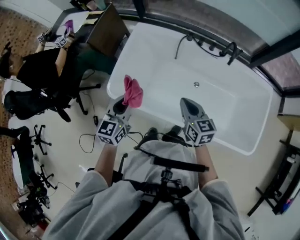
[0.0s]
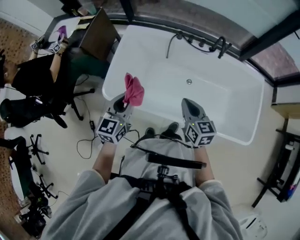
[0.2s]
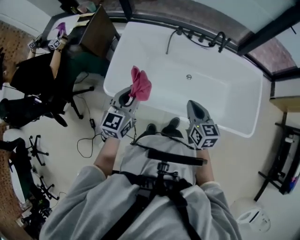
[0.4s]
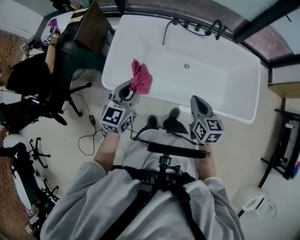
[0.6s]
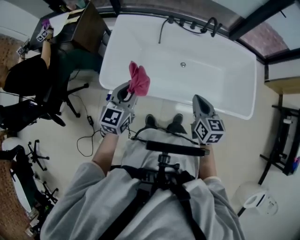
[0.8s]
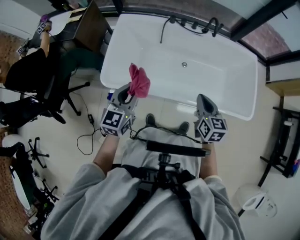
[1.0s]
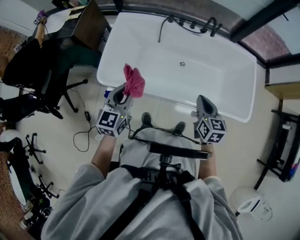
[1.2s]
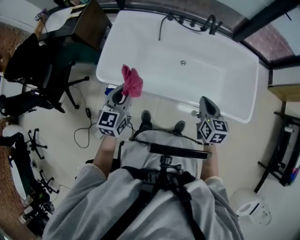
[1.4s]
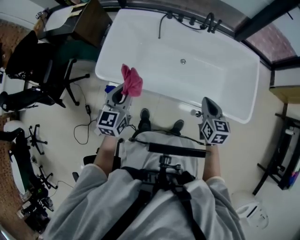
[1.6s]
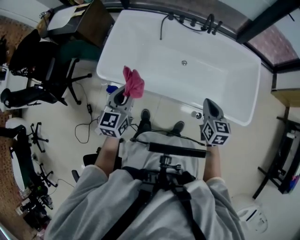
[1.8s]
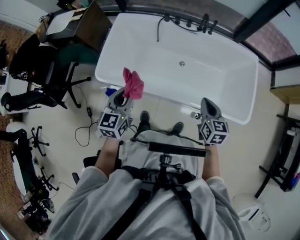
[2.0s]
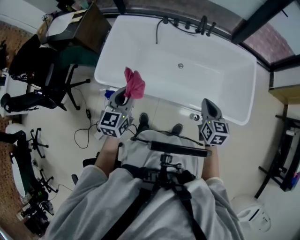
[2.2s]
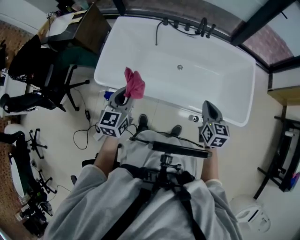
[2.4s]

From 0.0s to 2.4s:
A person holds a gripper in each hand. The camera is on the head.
From 0.0s to 1.2s: The right gripper changes place by roughly 20 cm, and turns by some 20 degrees.
From 1.2s to 2.4s: The right gripper shifts by approximately 15 cm.

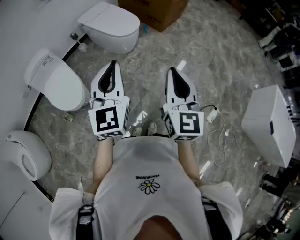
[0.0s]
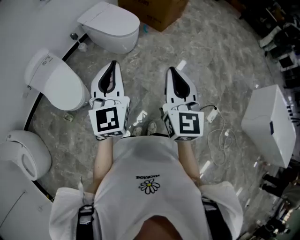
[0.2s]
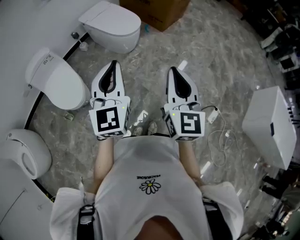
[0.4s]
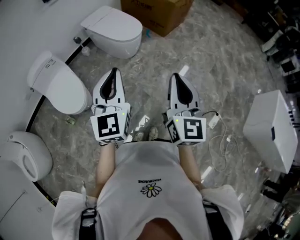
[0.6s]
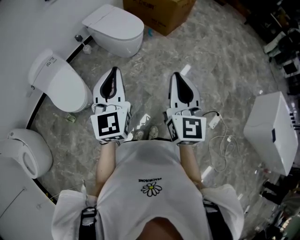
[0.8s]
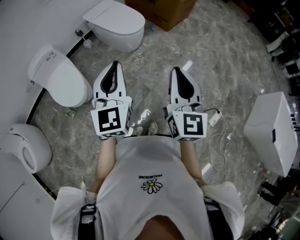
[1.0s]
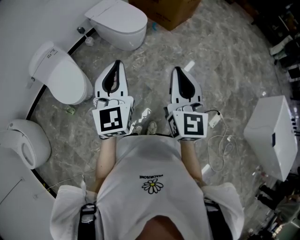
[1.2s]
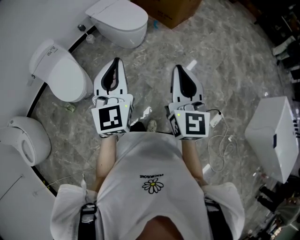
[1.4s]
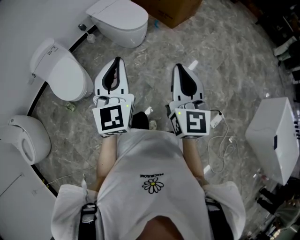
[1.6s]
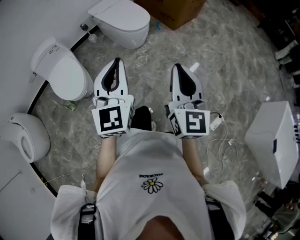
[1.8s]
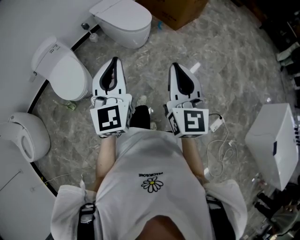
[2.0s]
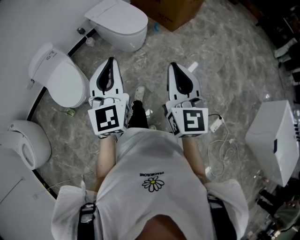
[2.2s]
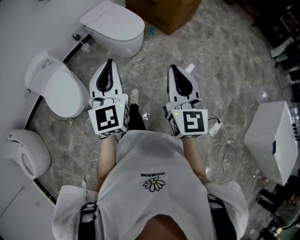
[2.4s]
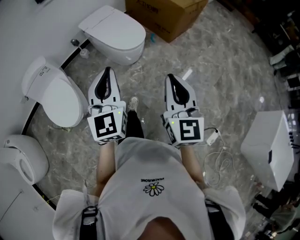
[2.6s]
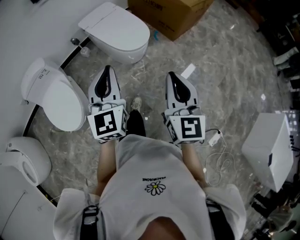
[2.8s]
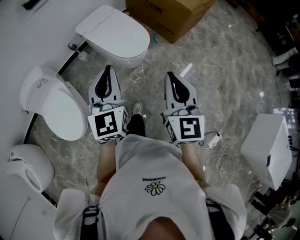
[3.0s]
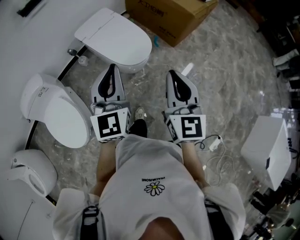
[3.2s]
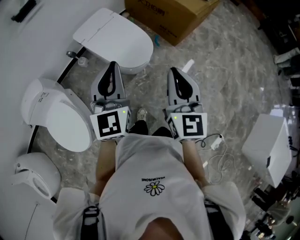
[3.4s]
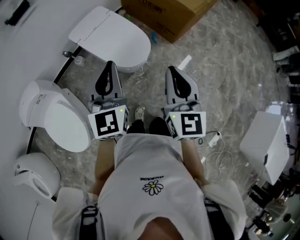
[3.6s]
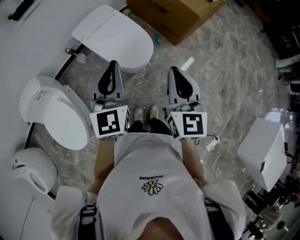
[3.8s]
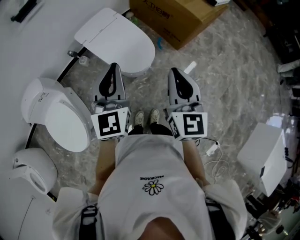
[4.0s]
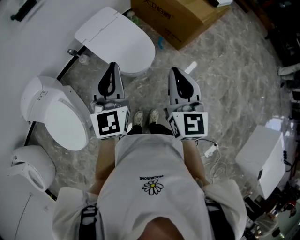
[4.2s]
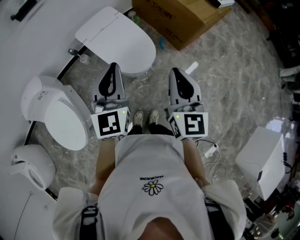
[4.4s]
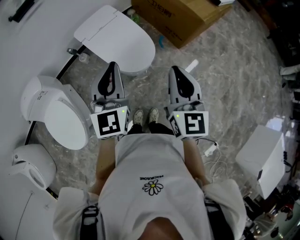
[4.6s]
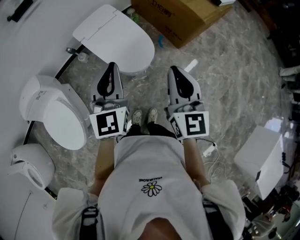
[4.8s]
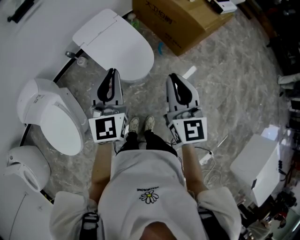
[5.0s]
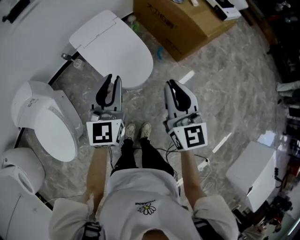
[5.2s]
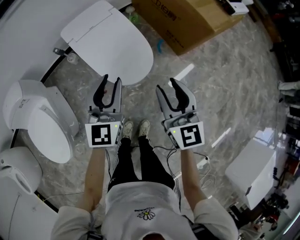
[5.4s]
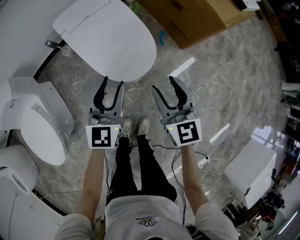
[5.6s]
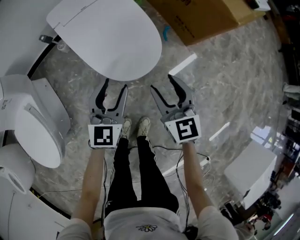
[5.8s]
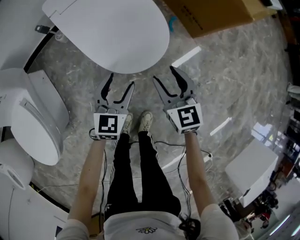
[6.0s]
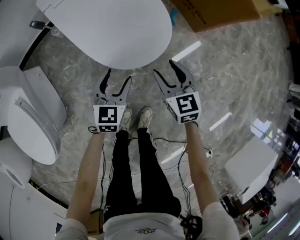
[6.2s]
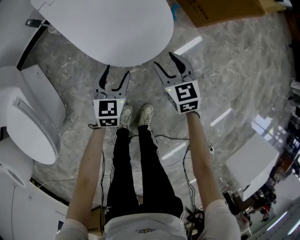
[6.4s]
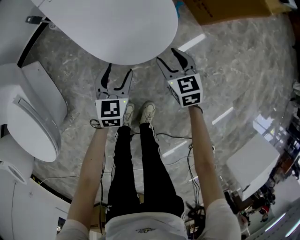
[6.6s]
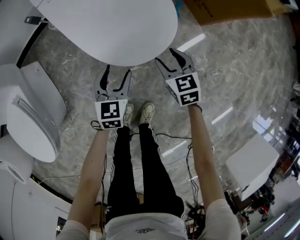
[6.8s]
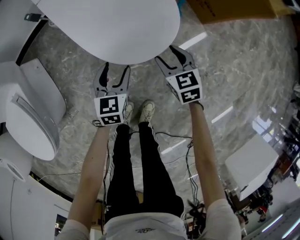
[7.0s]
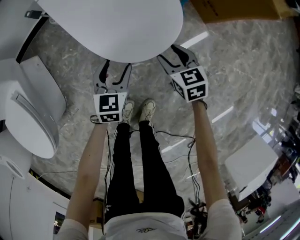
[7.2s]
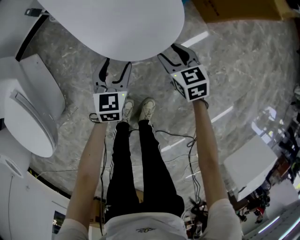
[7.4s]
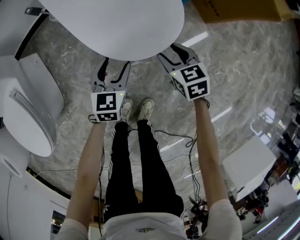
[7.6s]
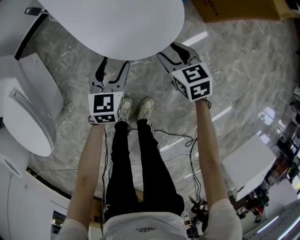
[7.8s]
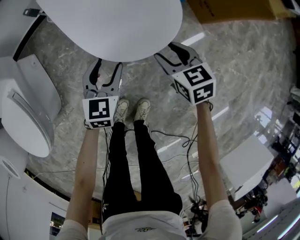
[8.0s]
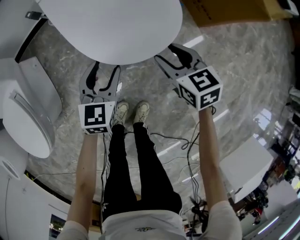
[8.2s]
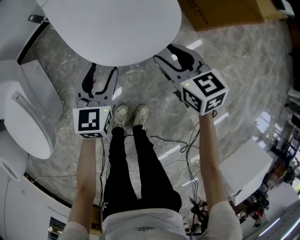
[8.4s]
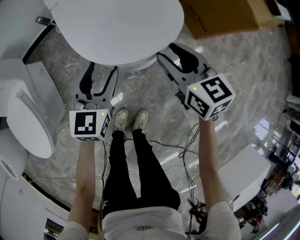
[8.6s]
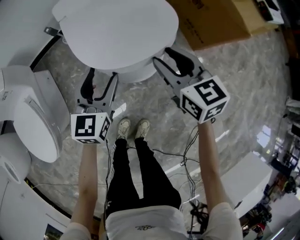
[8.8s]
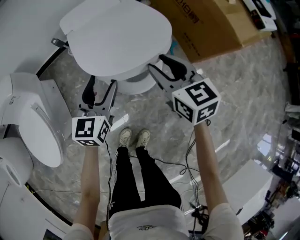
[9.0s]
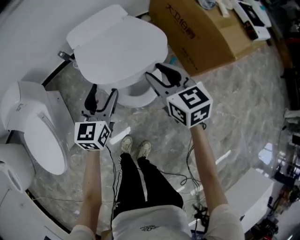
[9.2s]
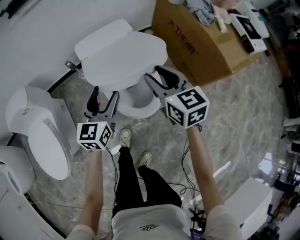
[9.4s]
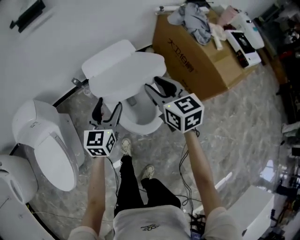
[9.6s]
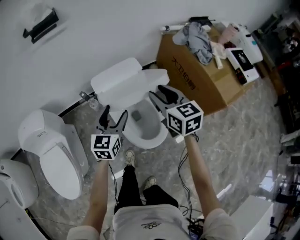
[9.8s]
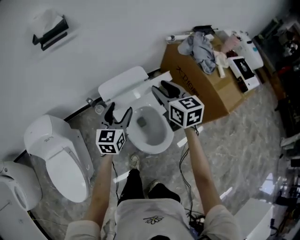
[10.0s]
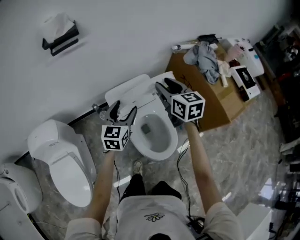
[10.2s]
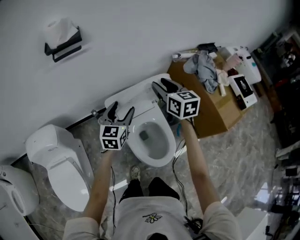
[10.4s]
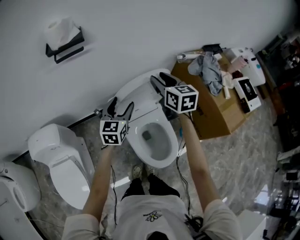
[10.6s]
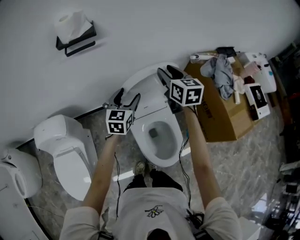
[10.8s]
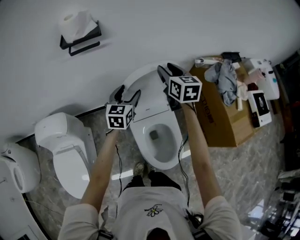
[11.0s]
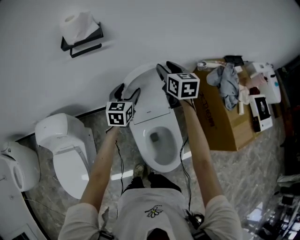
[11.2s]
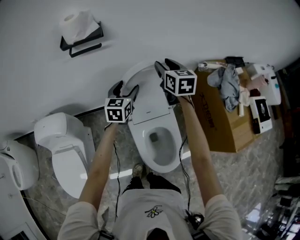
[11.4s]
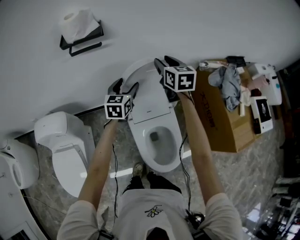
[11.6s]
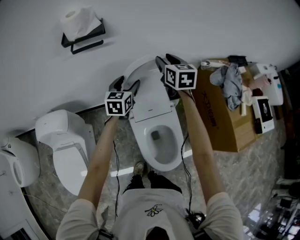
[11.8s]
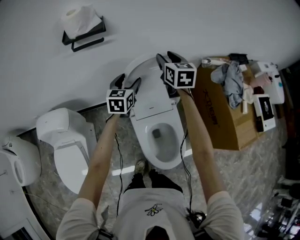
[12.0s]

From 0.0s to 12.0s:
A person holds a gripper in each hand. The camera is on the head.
From 0.0s to 1.6s: Both grippers move to the right, approximately 5 cm.
From 1.6s to 3.0s: Both grippers travel together forward, some 30 cm.
From 3.0s to 4.4s: Both grippers travel together forward, about 20 cm.
From 4.4s to 6.0s: Both grippers travel together downward, some 40 cm. The right gripper swivels some 30 degrees, and opens its fingers; the left gripper rotates about 30 degrees, and opens.
From 6.0s to 7.6s: Both grippers move downward, some 15 cm. The right gripper turns by roughly 20 degrees.
From 7.6s to 9.0s: Both grippers travel together upward, approximately 25 cm. The right gripper changes its angle by roughly 20 degrees.
From 9.0s to 10.4s: The grippers both shift forward and upward by approximately 35 cm.
From 10.4s to 12.0s: The grippers both shift forward by about 15 cm.

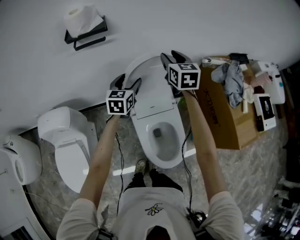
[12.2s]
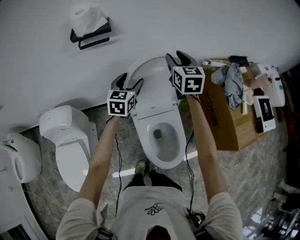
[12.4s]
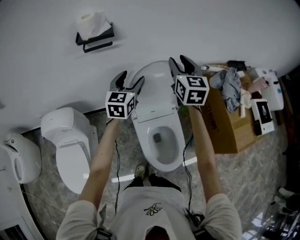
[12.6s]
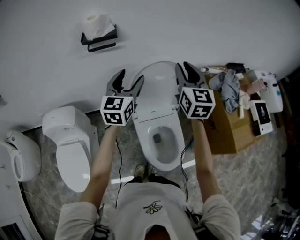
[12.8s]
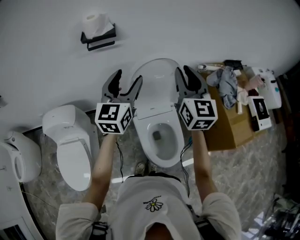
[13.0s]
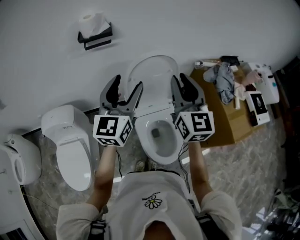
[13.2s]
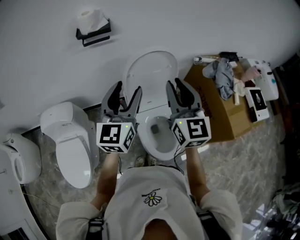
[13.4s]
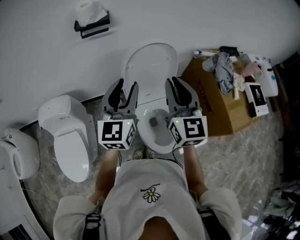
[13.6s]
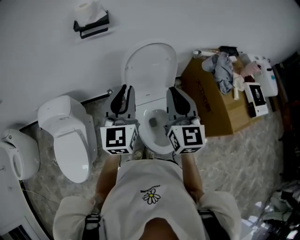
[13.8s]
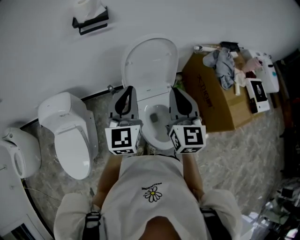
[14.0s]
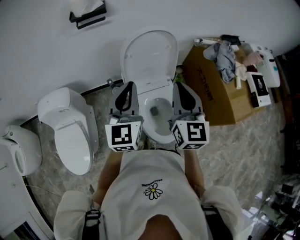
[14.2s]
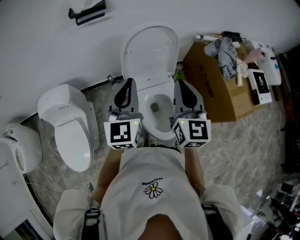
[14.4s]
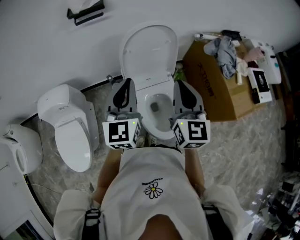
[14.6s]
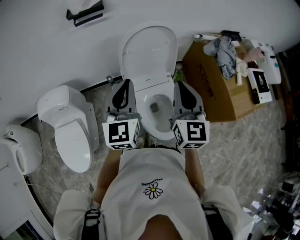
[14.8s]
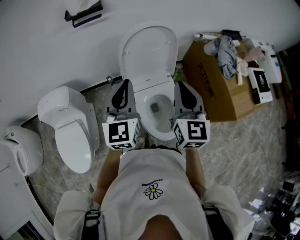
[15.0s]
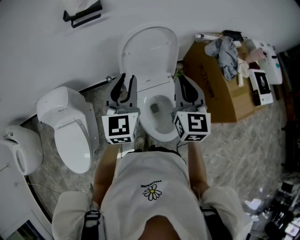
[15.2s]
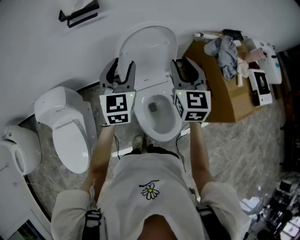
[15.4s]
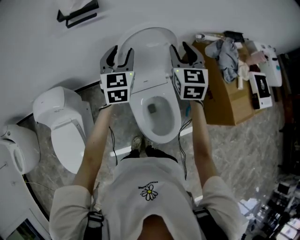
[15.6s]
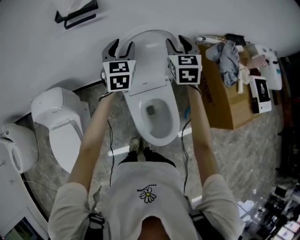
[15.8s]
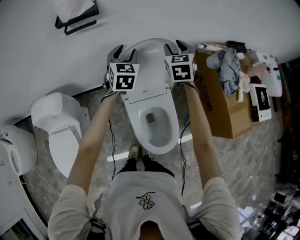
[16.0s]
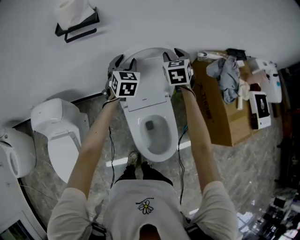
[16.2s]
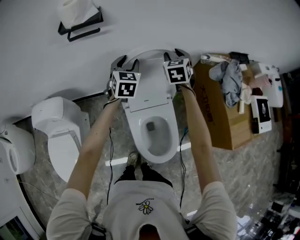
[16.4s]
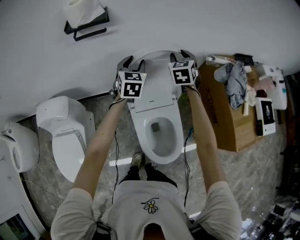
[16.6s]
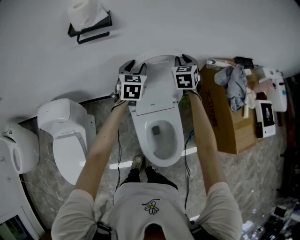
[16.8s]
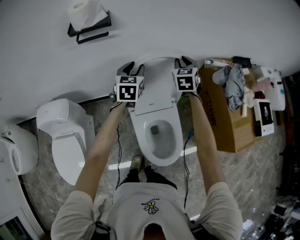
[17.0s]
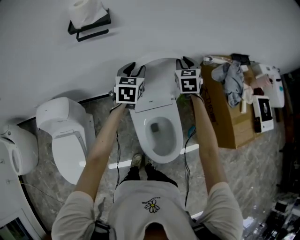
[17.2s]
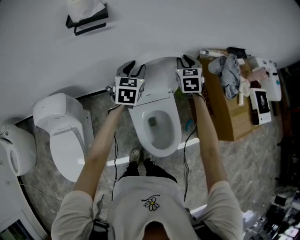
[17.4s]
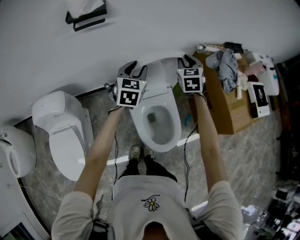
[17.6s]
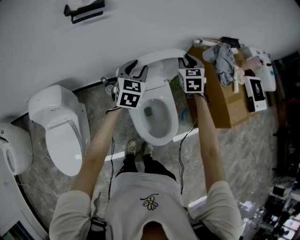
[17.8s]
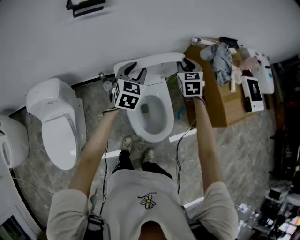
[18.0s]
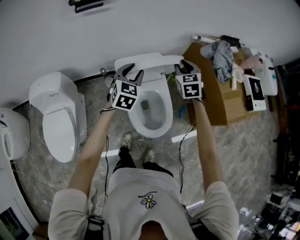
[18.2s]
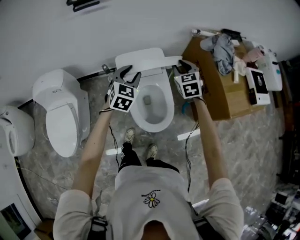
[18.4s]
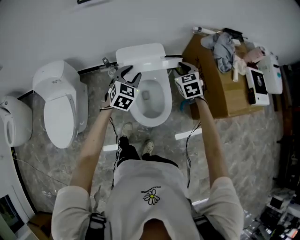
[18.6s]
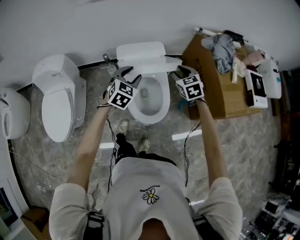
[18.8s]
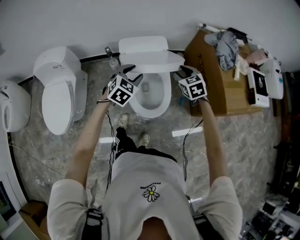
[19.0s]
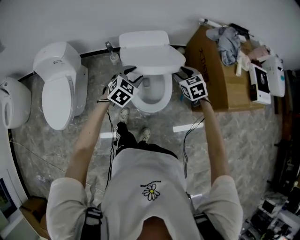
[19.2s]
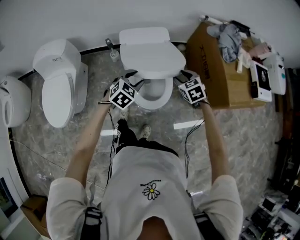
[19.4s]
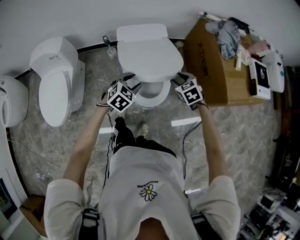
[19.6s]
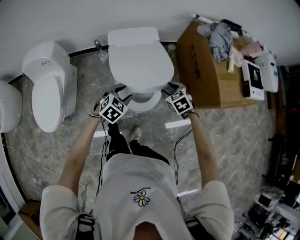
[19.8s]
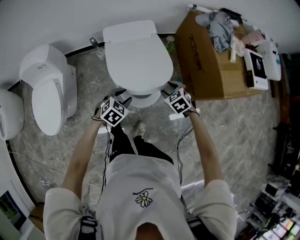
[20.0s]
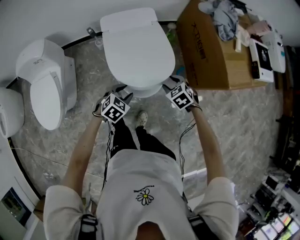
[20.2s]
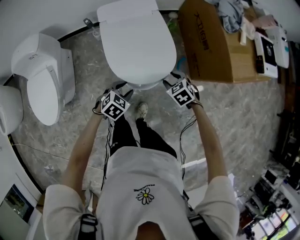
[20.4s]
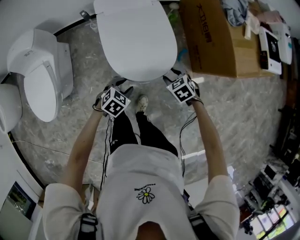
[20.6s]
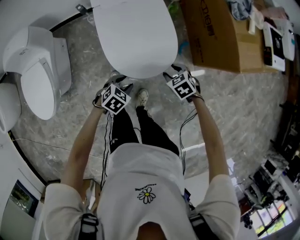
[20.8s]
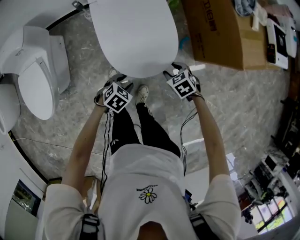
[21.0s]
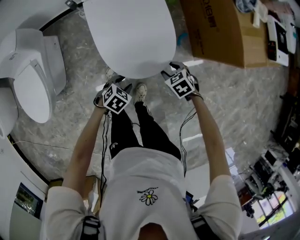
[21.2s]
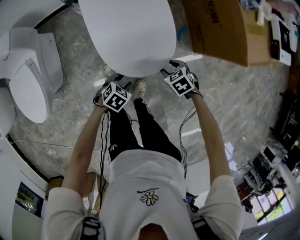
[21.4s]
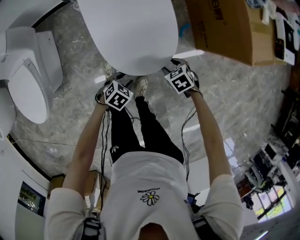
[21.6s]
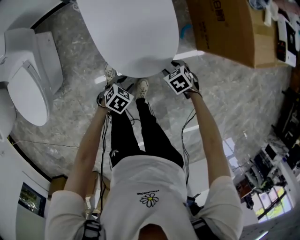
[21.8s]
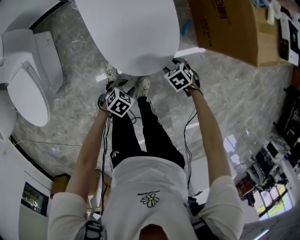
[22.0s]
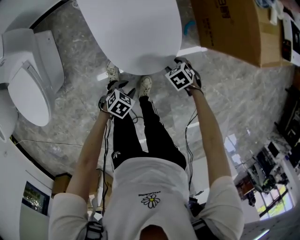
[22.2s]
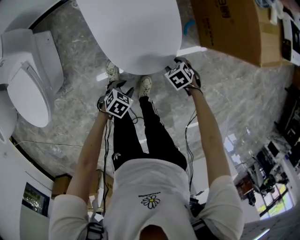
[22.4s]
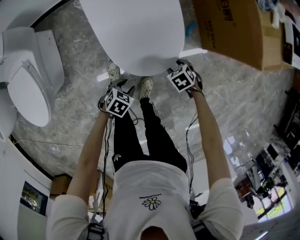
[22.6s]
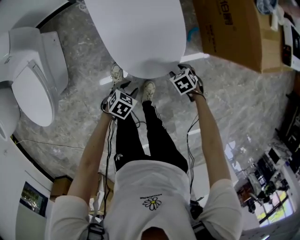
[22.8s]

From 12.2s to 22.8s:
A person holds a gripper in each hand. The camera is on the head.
From 12.2s to 13.8s: The right gripper travels backward by some 30 cm, and closes, while the left gripper moves backward and upward, approximately 30 cm, changes its angle by approximately 30 degrees, and closes up.
From 13.8s to 15.2s: The right gripper ends up about 5 cm from where it was.
From 15.2s to 16.8s: The left gripper heads forward and downward, covering approximately 30 cm, and rotates some 20 degrees; the right gripper shifts some 30 cm forward, and changes its angle by about 30 degrees.
From 16.8s to 18.2s: The grippers both shift backward and to the right by approximately 25 cm.
From 18.2s to 19.8s: The grippers both shift backward and downward by some 30 cm. The right gripper rotates approximately 30 degrees, while the left gripper swivels approximately 30 degrees.
From 19.8s to 21.2s: The two grippers go approximately 20 cm downward and backward. The left gripper rotates about 30 degrees.
From 21.2s to 22.8s: The left gripper is displaced downward by about 5 cm. The right gripper moves downward, approximately 10 cm.
